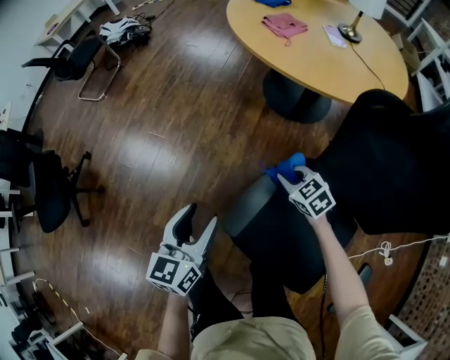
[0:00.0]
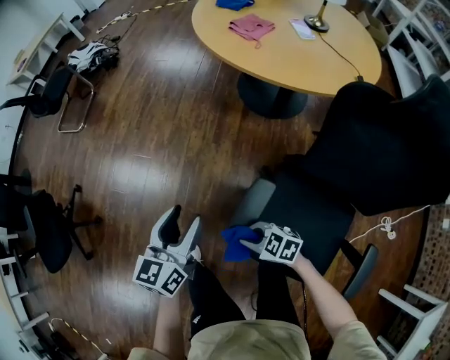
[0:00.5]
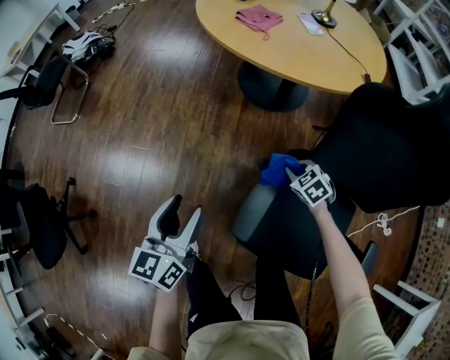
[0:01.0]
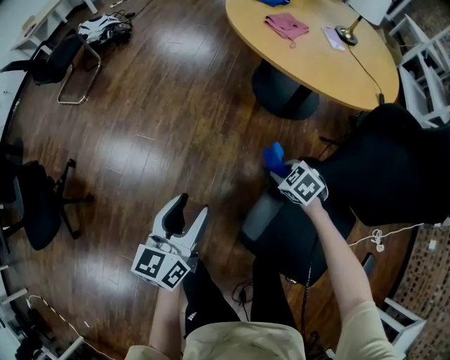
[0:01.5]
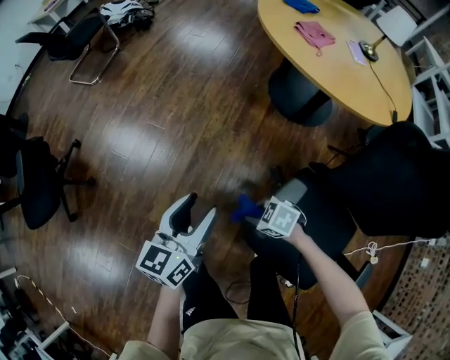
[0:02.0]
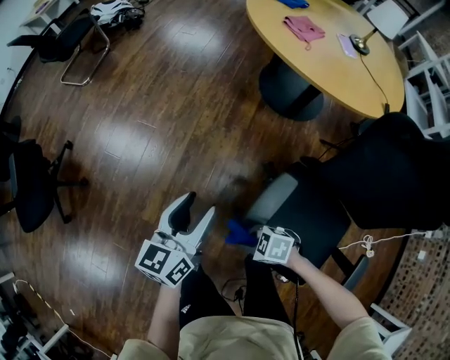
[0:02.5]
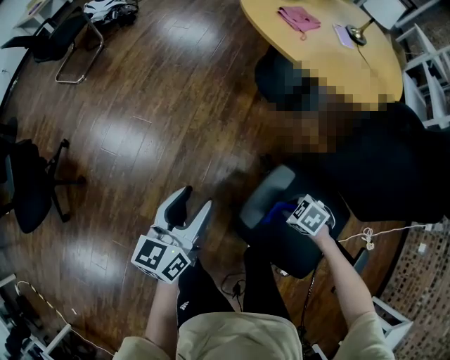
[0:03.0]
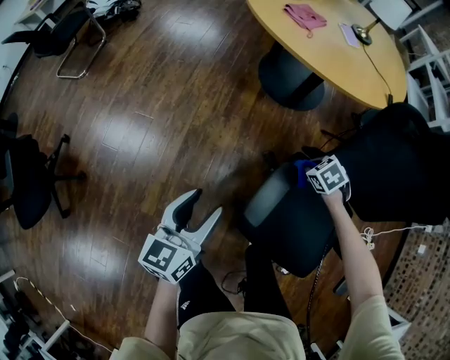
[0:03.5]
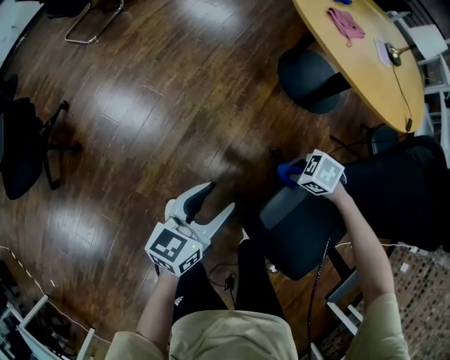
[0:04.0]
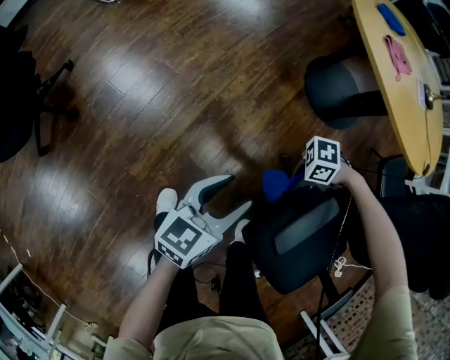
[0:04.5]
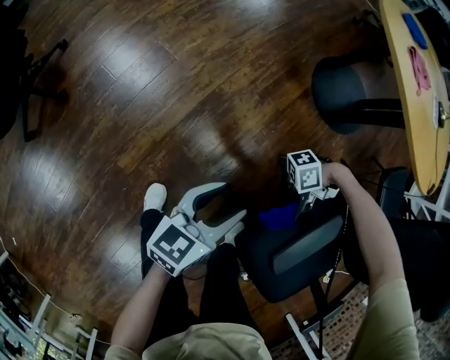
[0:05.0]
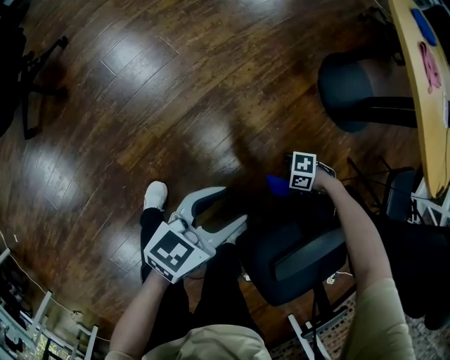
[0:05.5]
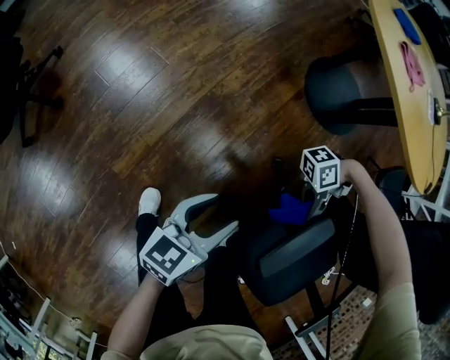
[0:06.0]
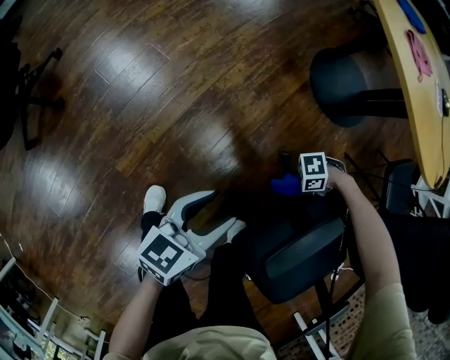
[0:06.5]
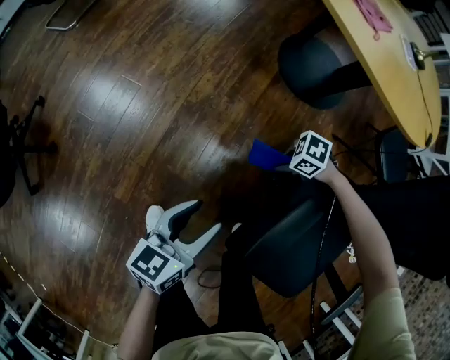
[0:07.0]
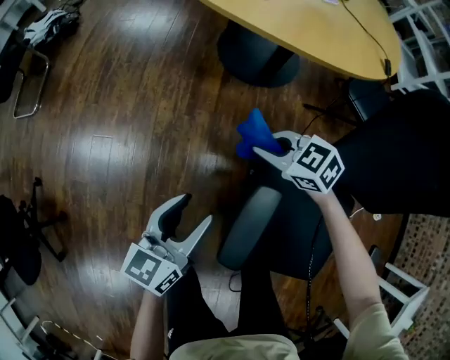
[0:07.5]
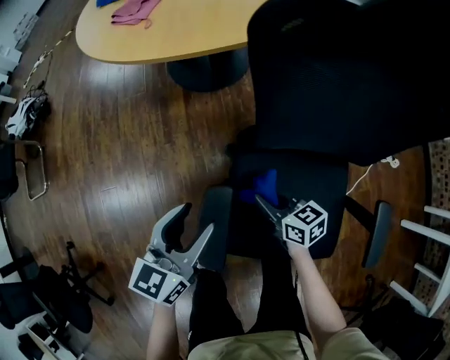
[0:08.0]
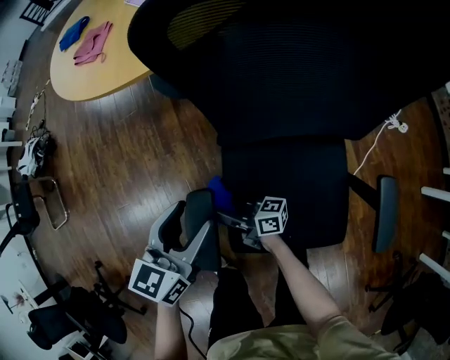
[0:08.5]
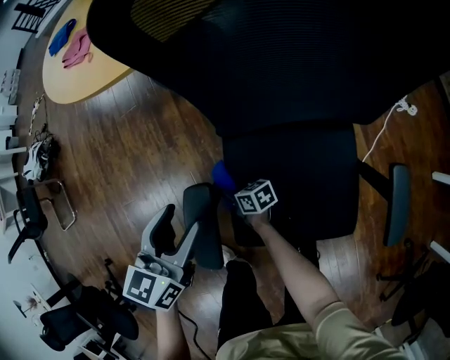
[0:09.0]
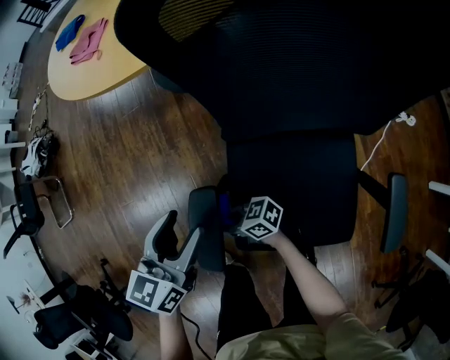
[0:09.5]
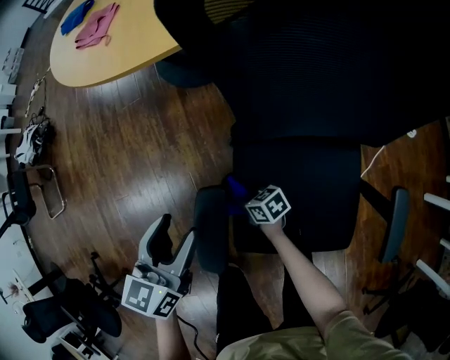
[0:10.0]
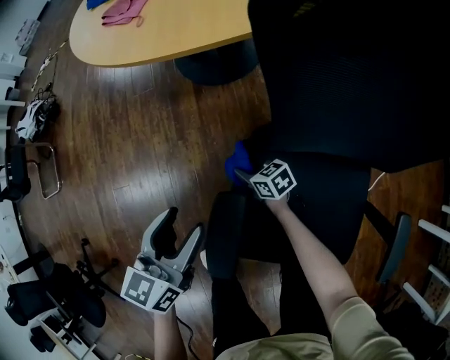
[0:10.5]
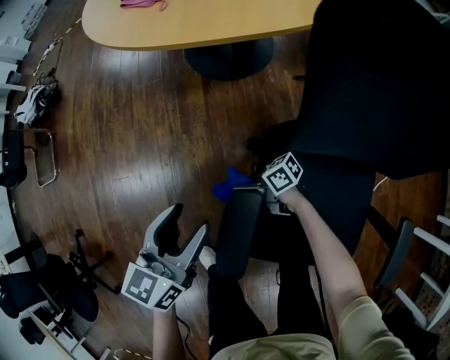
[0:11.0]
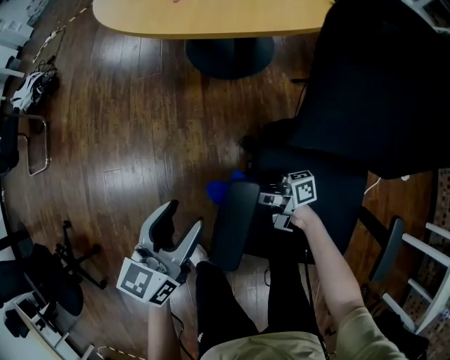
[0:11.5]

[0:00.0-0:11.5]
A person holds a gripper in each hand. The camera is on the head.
0:00.0 to 0:02.0: The right gripper ends up about 25 cm from where it was, and rotates about 40 degrees; the left gripper shifts by approximately 10 cm.
0:02.0 to 0:04.0: The left gripper moves downward, some 5 cm.
0:04.0 to 0:06.0: The right gripper travels downward and back again, approximately 25 cm each way, and tilts its fingers some 70 degrees upward. The left gripper is displaced downward by about 15 cm.
0:06.0 to 0:07.5: The right gripper moves some 15 cm downward and comes back, and tilts its fingers roughly 40 degrees downward. Meanwhile the left gripper changes place by some 15 cm.
0:07.5 to 0:09.5: The left gripper shifts some 15 cm to the right, and changes its angle by roughly 20 degrees; the right gripper is displaced backward by roughly 20 cm, and tips its fingers upward by about 30 degrees.
0:09.5 to 0:11.5: The left gripper moves roughly 10 cm. Meanwhile the right gripper travels downward and back again, about 10 cm each way, and rotates about 30 degrees.

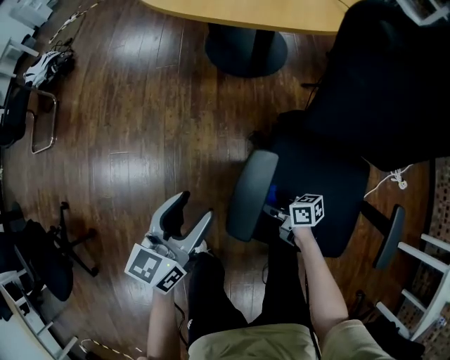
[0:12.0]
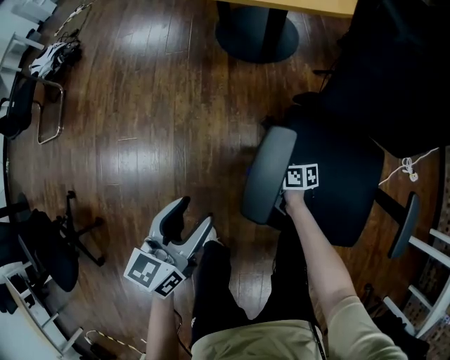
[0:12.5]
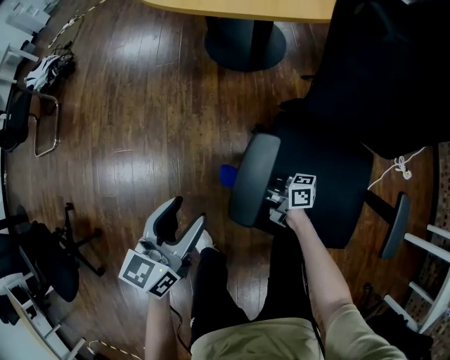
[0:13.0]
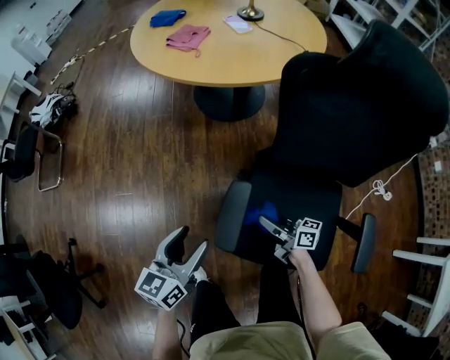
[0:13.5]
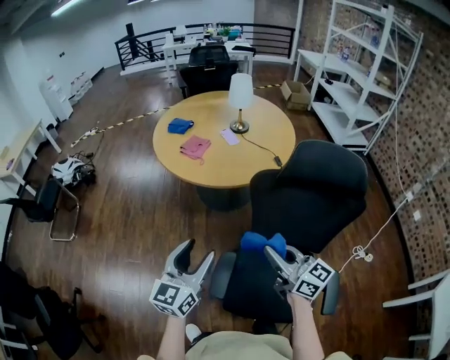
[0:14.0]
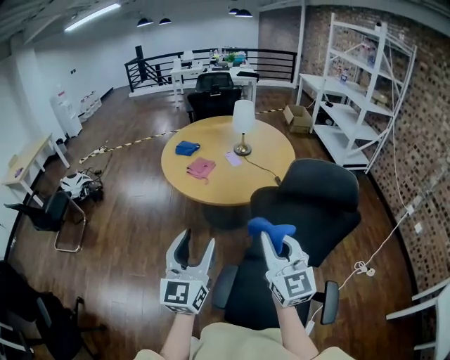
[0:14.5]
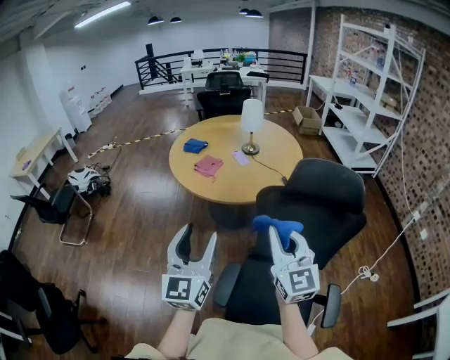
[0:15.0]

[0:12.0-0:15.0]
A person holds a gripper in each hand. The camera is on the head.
0:12.0 to 0:13.5: The left gripper goes about 5 cm upward, while the right gripper is displaced upward and to the right by some 15 cm, and changes its angle by about 30 degrees.
0:13.5 to 0:15.0: Both grippers travel together upward, approximately 40 cm. The right gripper rotates around the line of its fingers by approximately 70 degrees, counterclockwise from behind. Meanwhile the left gripper changes its angle by approximately 40 degrees.

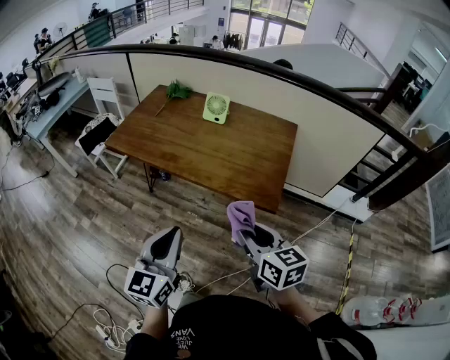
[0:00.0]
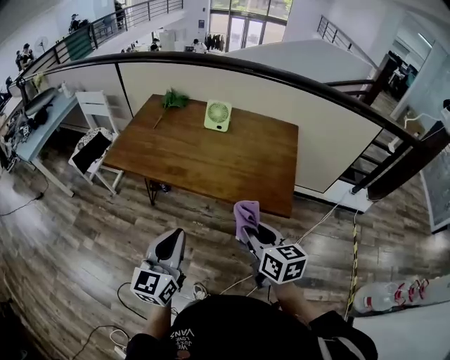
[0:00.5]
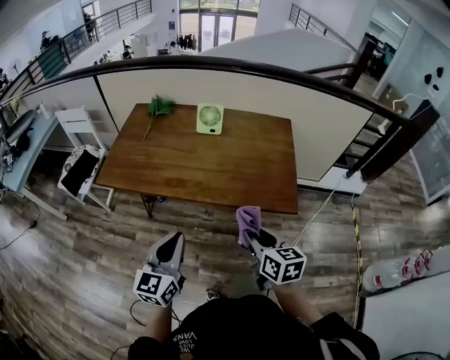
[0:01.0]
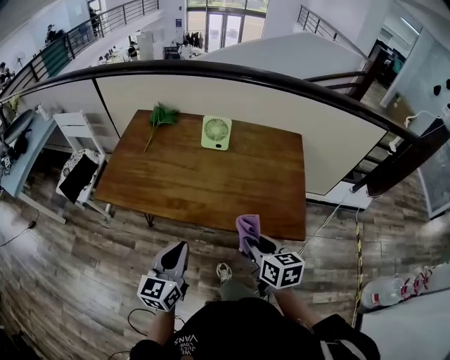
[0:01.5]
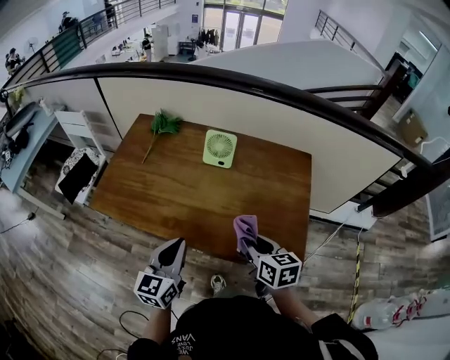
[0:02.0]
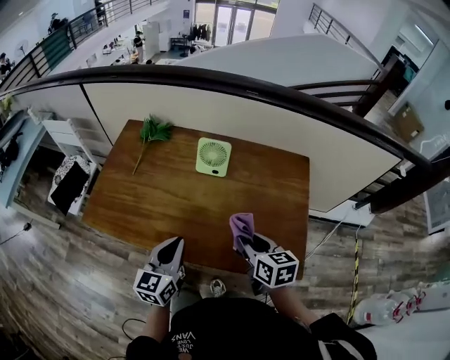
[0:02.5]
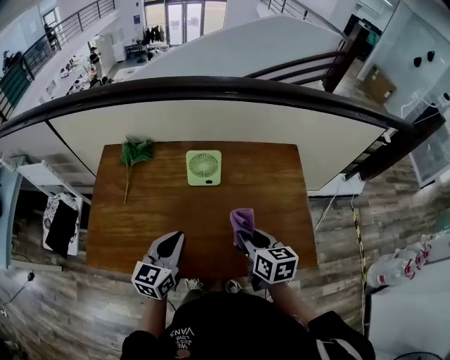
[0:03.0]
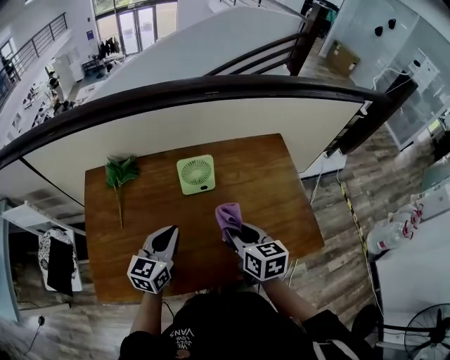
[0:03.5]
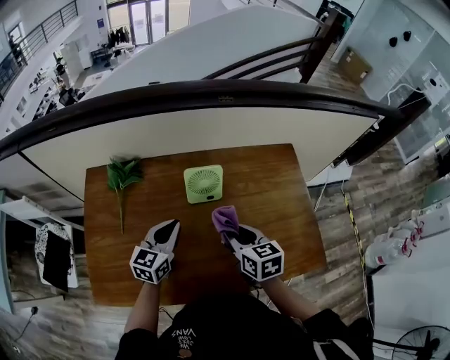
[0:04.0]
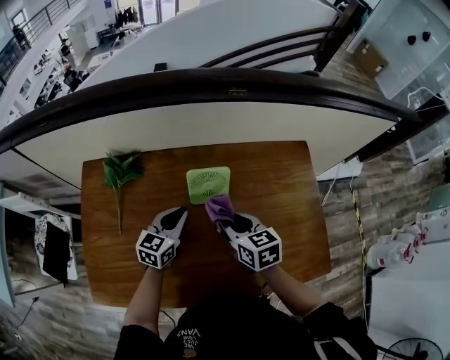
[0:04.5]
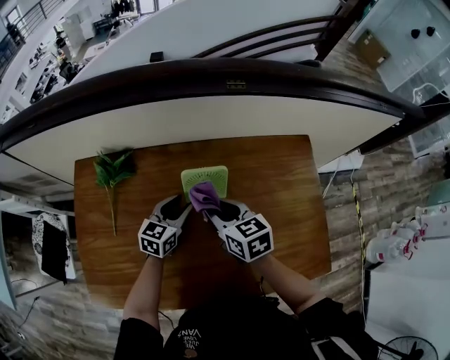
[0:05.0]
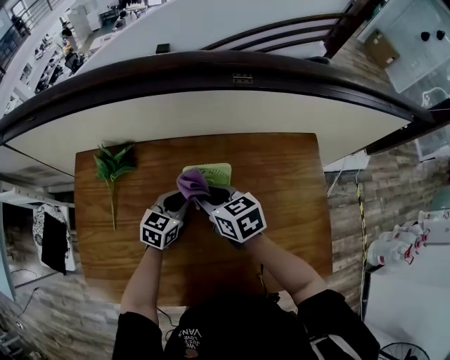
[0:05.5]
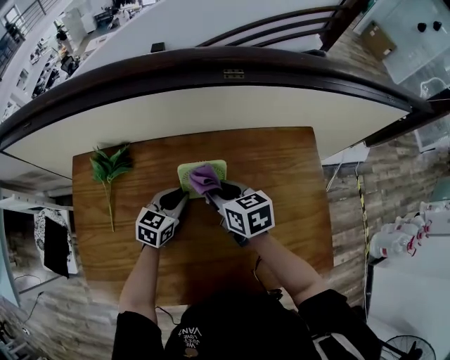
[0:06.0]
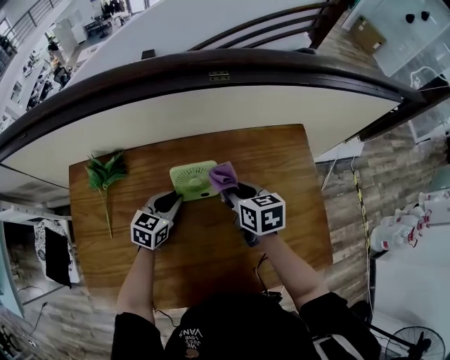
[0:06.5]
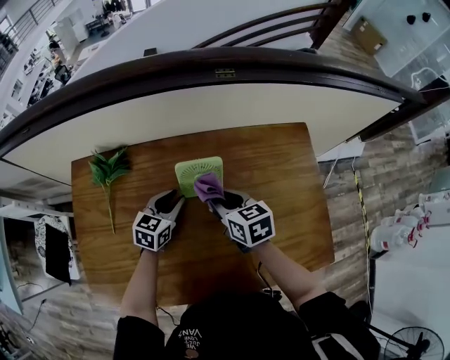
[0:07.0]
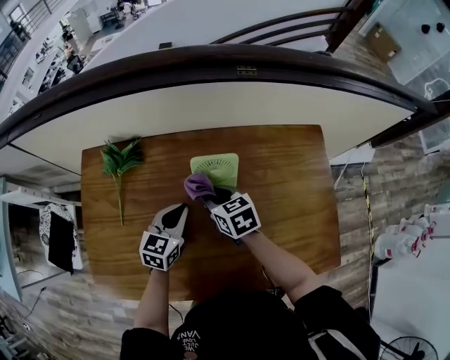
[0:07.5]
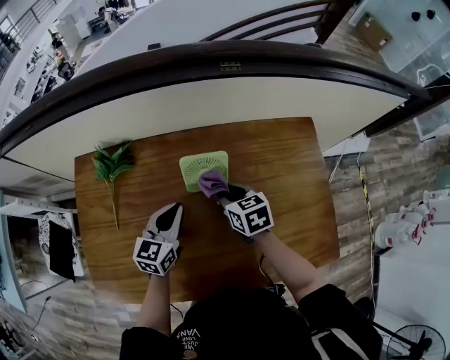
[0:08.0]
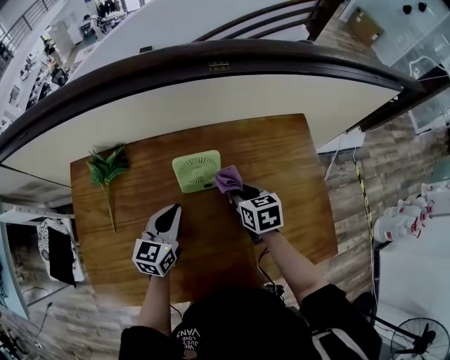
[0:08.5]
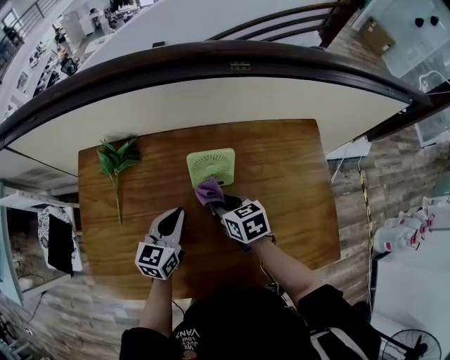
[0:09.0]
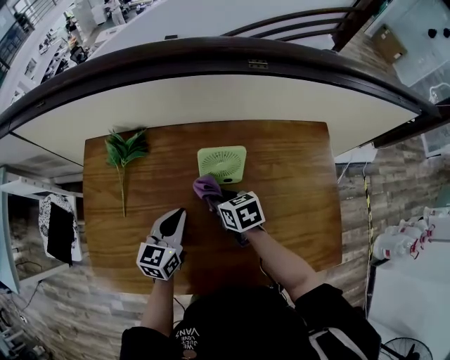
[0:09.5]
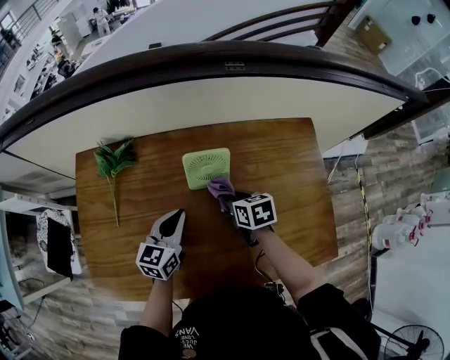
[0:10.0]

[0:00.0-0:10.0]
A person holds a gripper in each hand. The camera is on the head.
0:00.0 to 0:02.0: The grippers both shift forward by roughly 30 cm.
0:02.0 to 0:04.0: The left gripper changes place by some 30 cm, and turns by roughly 30 degrees, while the right gripper shifts by roughly 20 cm.
0:04.0 to 0:06.0: The left gripper goes about 15 cm forward and downward. The right gripper heads forward, covering some 15 cm.
0:06.0 to 0:08.0: The right gripper goes left and right, about 10 cm each way, reversing 2 times; the left gripper is displaced upward and backward by about 10 cm.
0:08.0 to 0:10.0: The right gripper moves left and right over about 15 cm, changing direction 2 times.

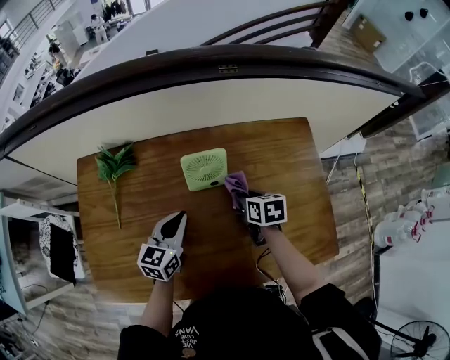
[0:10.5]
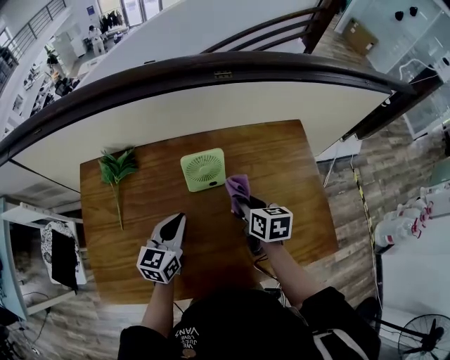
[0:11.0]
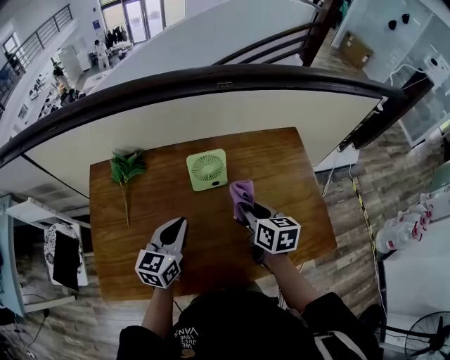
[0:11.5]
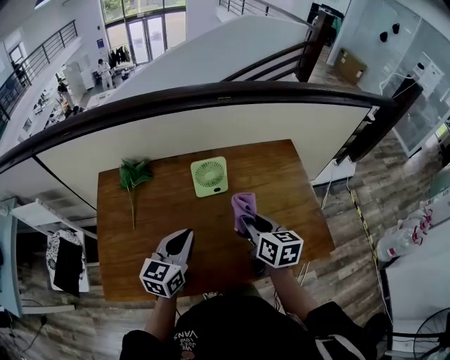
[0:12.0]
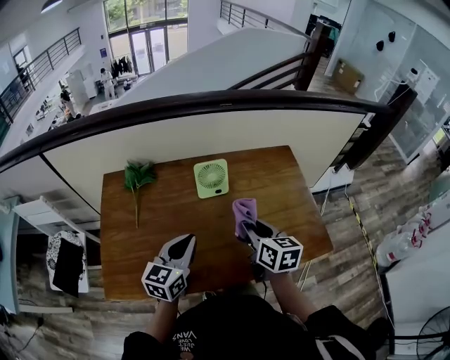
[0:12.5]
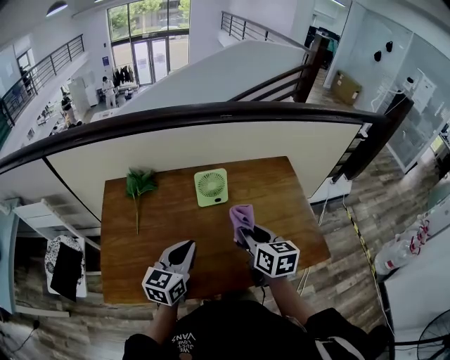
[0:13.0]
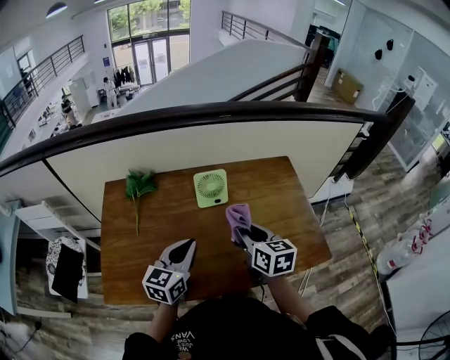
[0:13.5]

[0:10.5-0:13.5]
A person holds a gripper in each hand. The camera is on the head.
0:10.5 to 0:12.0: The left gripper shifts approximately 15 cm backward and upward. The right gripper is displaced upward and backward by roughly 20 cm, and swivels approximately 30 degrees.
0:12.0 to 0:13.5: The grippers make only small movements.
